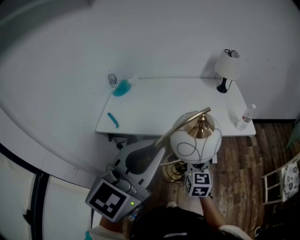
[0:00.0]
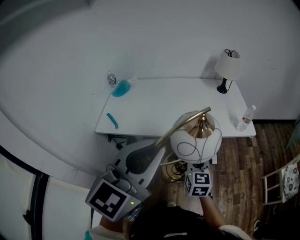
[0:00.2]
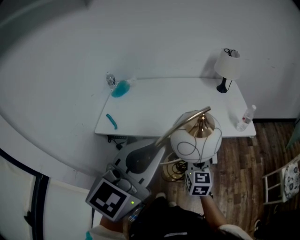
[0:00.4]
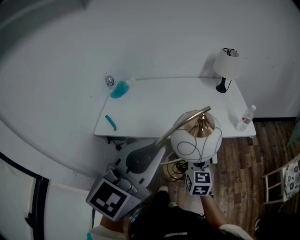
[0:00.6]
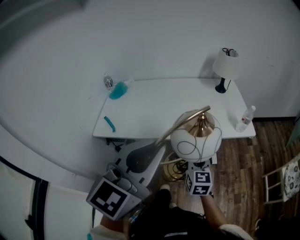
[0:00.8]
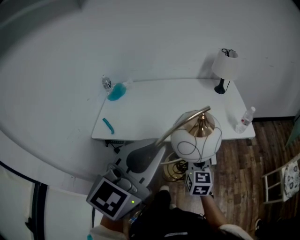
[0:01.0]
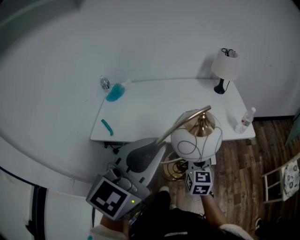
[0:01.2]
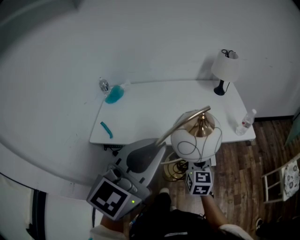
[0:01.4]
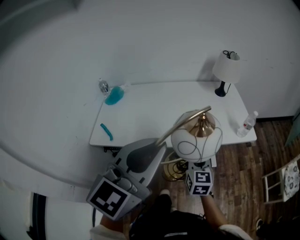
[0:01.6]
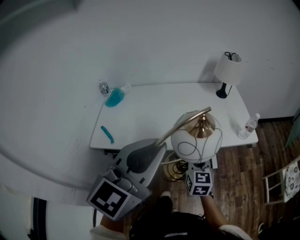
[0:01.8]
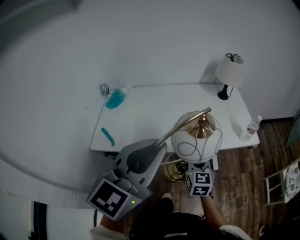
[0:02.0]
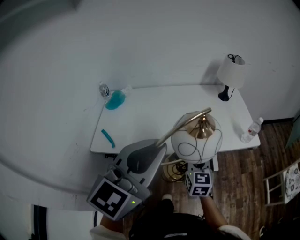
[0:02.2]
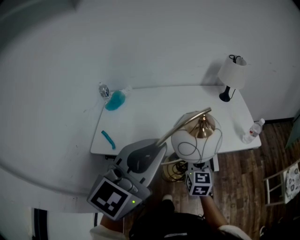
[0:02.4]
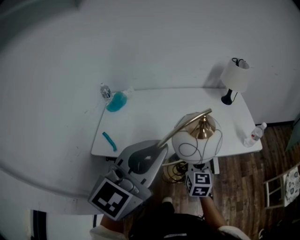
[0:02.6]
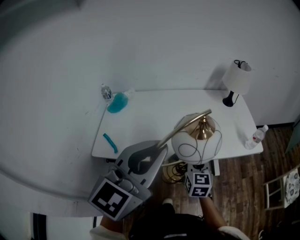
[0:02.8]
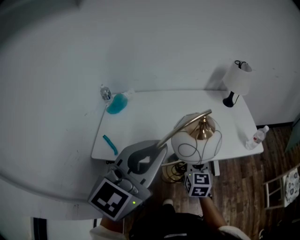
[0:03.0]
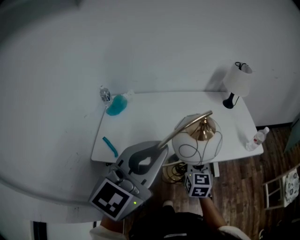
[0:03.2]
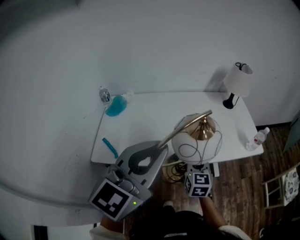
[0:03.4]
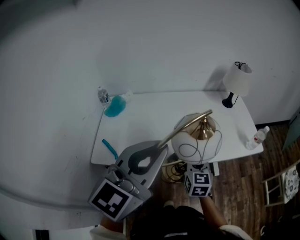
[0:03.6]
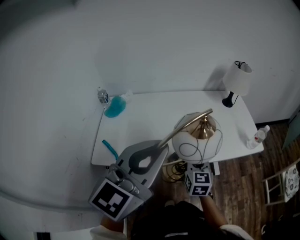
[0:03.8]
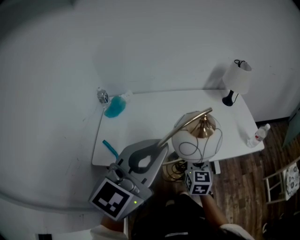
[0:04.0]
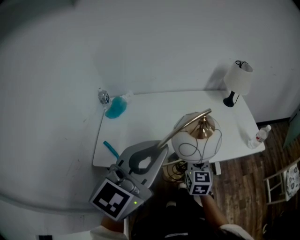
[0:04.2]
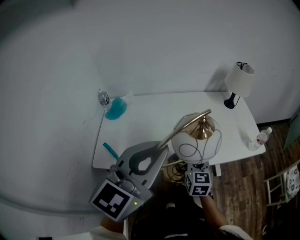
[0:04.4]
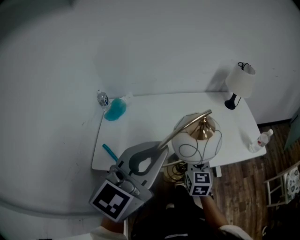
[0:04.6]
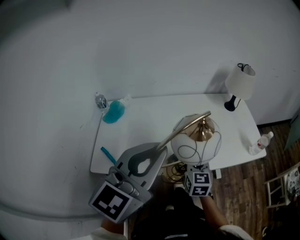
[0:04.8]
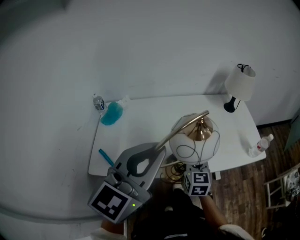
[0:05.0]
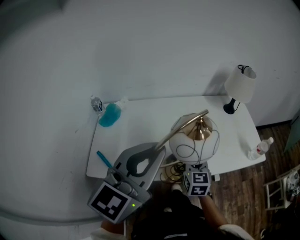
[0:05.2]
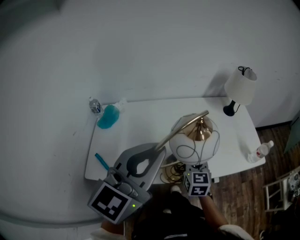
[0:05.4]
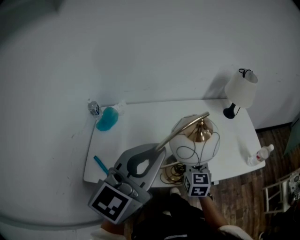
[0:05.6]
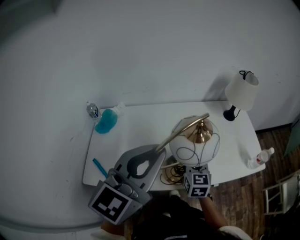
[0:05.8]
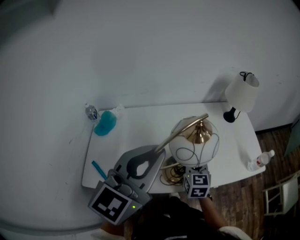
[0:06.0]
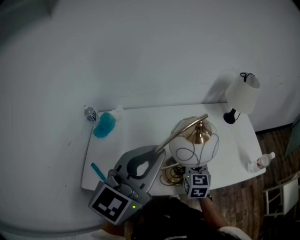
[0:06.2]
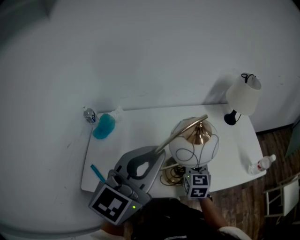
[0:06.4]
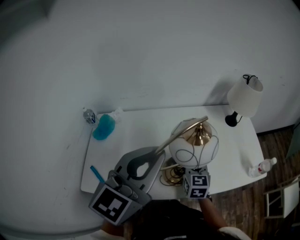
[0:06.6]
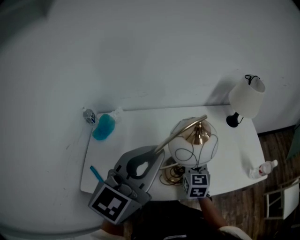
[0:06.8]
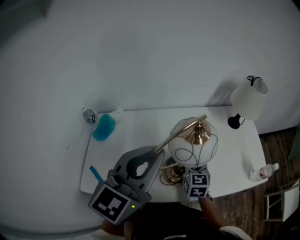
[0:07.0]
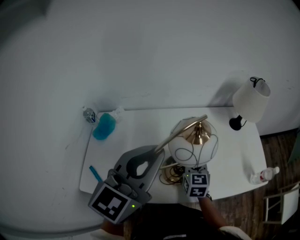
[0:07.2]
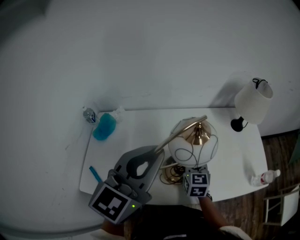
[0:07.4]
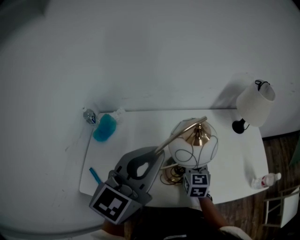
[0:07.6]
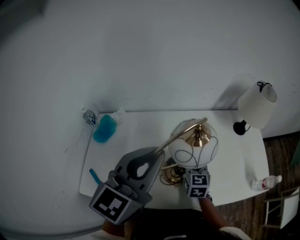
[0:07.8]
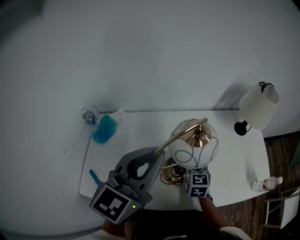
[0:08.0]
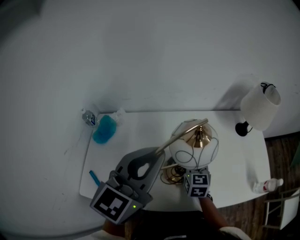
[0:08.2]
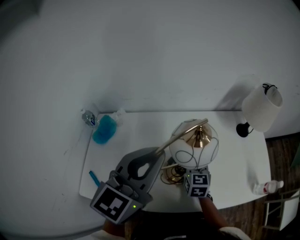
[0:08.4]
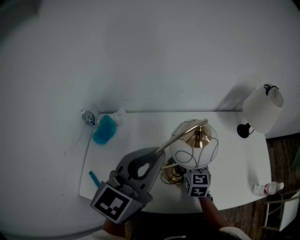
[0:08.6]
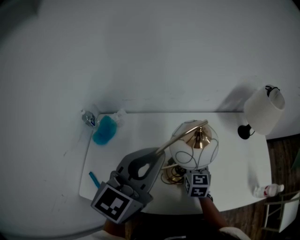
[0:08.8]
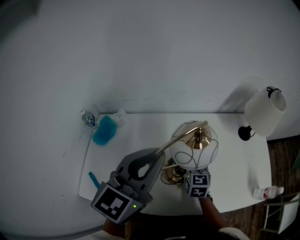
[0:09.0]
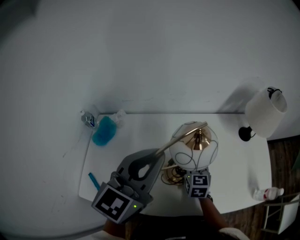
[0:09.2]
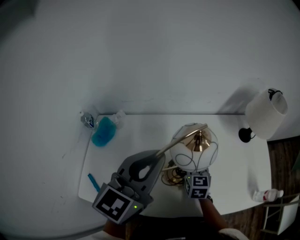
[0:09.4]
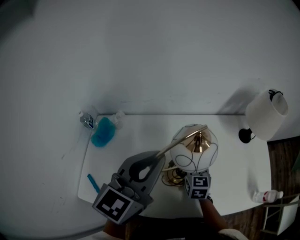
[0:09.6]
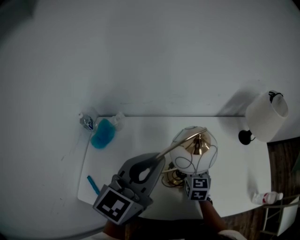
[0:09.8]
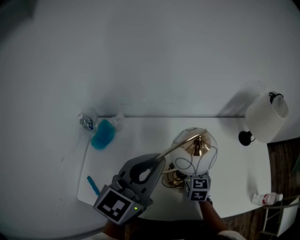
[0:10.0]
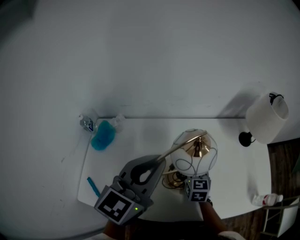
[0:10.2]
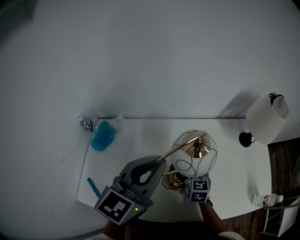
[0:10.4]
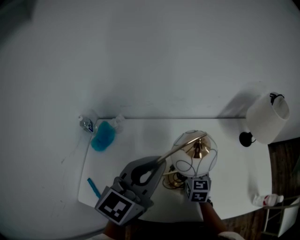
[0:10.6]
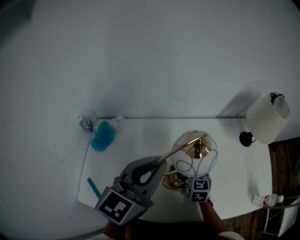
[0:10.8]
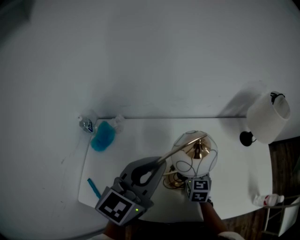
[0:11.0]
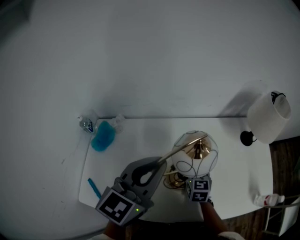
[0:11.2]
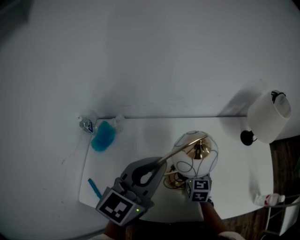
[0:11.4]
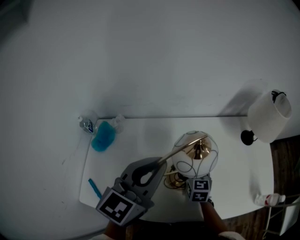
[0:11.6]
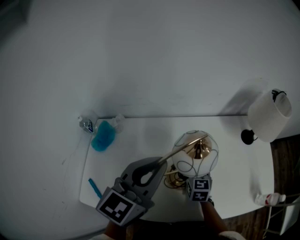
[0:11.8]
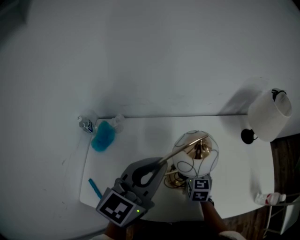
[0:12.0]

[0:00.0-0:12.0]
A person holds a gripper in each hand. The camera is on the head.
0:00.0 to 0:01.6: The grippers both shift forward by roughly 5 cm.
0:01.6 to 0:03.0: The right gripper shifts roughly 10 cm to the left and forward. Meanwhile the left gripper heads to the left, covering about 5 cm.
0:03.0 to 0:04.4: The right gripper goes some 5 cm to the left. The left gripper moves to the left and forward, roughly 10 cm.
0:04.4 to 0:06.0: The two grippers go some 15 cm forward.
0:06.0 to 0:07.6: Both grippers move forward, roughly 10 cm.
0:07.6 to 0:09.0: The left gripper heads forward, covering approximately 5 cm. The right gripper shifts by roughly 5 cm.
0:09.0 to 0:10.4: The grippers stay close to where they were, moving slightly.
0:10.4 to 0:12.0: Both grippers stay about where they are.

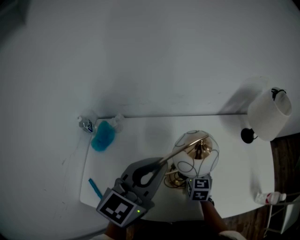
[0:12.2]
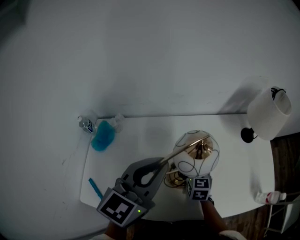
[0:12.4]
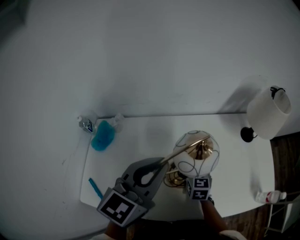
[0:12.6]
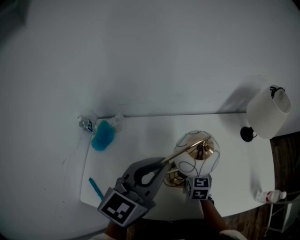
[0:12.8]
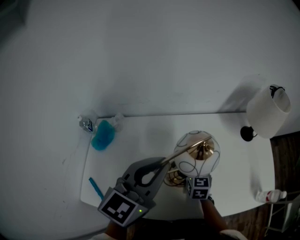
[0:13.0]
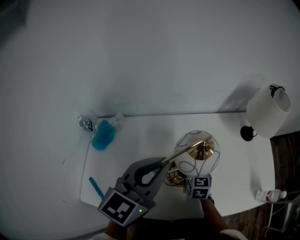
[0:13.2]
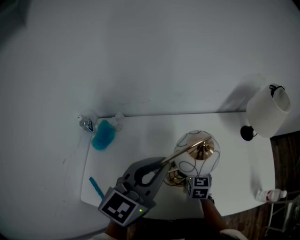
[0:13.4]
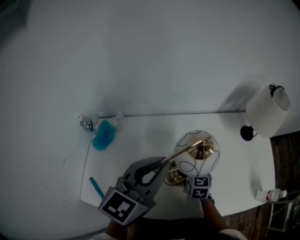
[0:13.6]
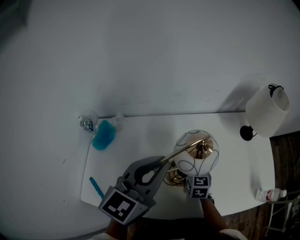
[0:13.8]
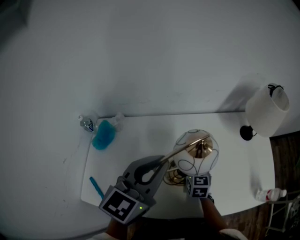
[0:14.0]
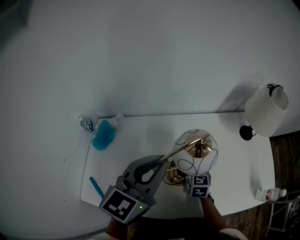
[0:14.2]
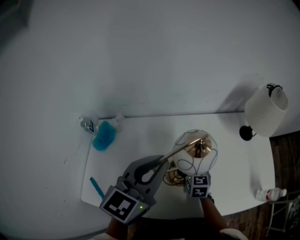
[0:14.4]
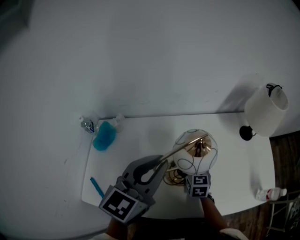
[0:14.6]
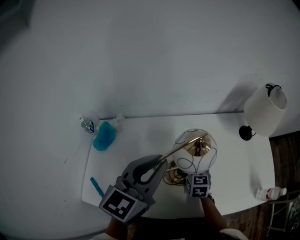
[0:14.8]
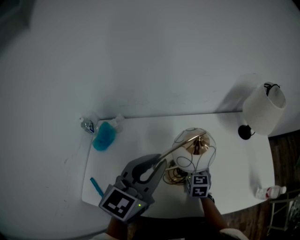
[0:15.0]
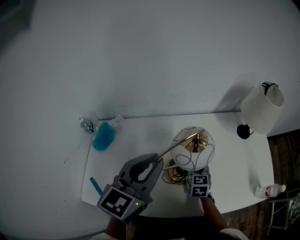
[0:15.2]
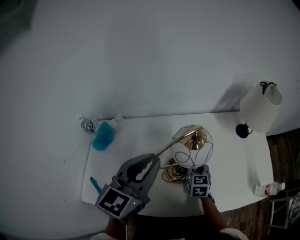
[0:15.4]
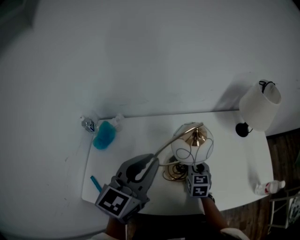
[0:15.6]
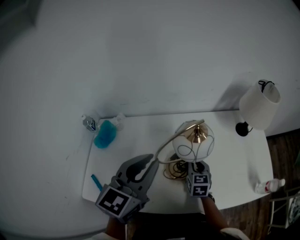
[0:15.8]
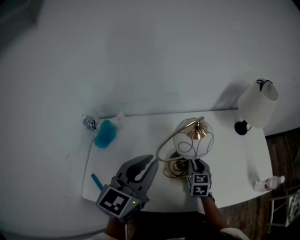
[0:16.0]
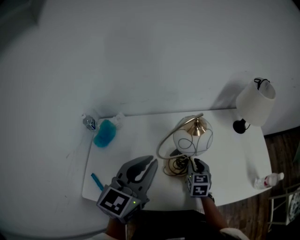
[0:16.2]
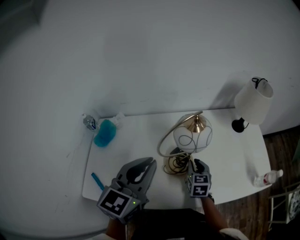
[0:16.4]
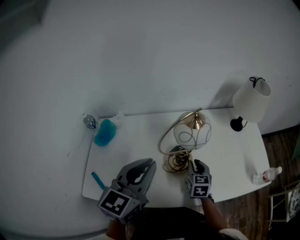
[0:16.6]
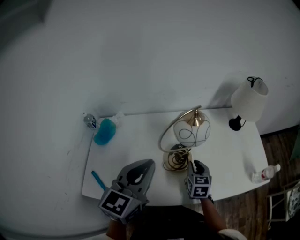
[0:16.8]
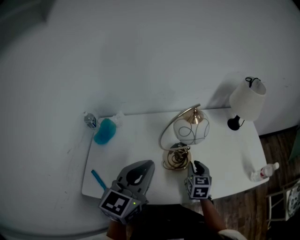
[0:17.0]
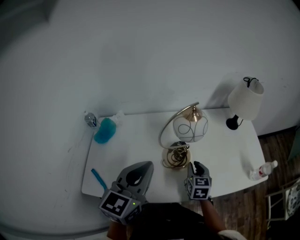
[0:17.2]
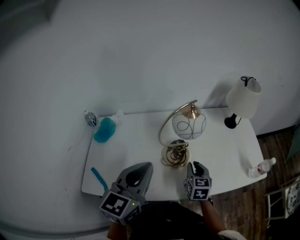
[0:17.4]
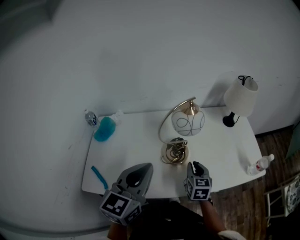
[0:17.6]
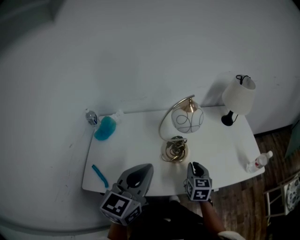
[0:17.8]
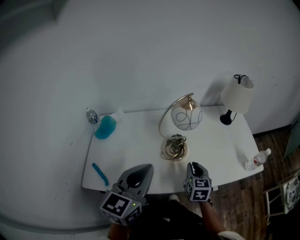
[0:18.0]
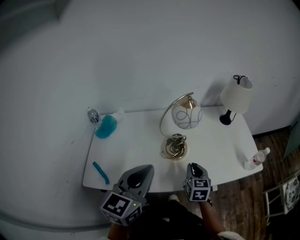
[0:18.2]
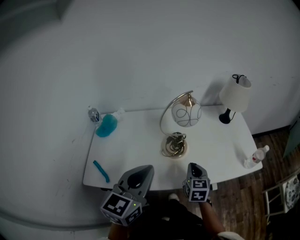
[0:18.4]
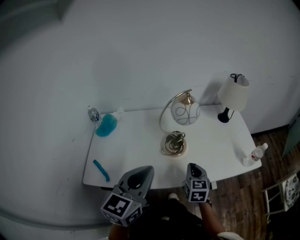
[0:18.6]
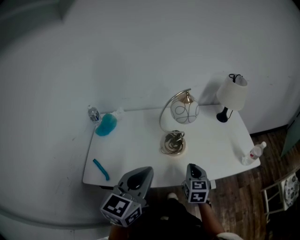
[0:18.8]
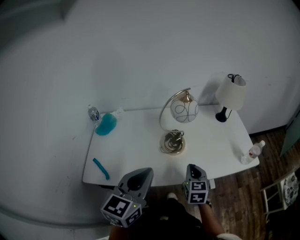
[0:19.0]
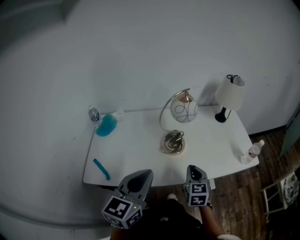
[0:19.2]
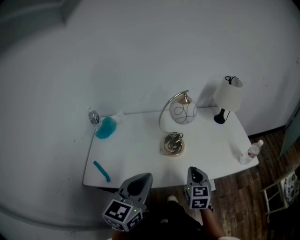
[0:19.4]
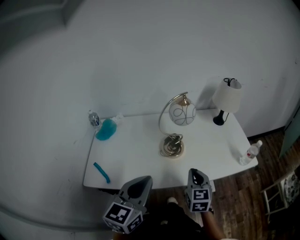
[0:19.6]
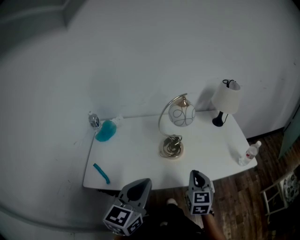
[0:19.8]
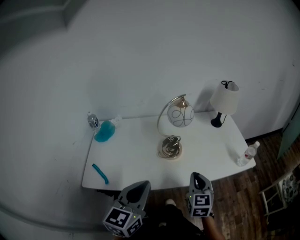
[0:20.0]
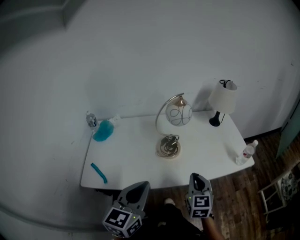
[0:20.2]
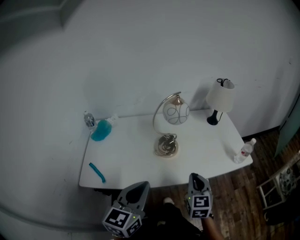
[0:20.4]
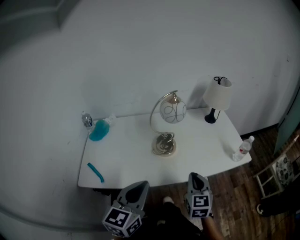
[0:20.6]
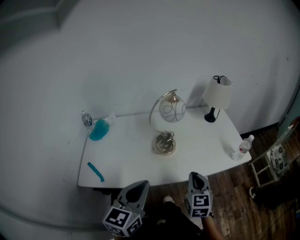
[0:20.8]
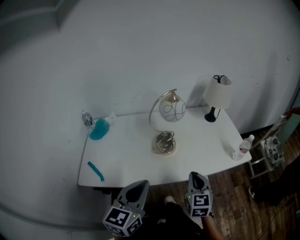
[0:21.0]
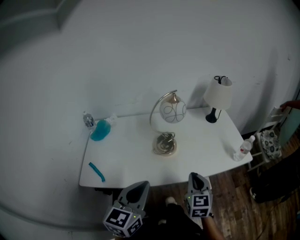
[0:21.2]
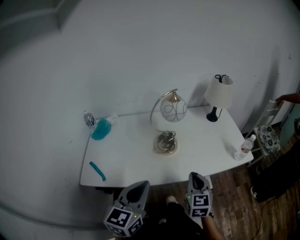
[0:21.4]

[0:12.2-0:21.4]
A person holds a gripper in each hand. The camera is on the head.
0:12.2 to 0:13.8: Both grippers stay about where they are.
0:13.8 to 0:15.2: There are only small adjustments of the grippers.
0:15.2 to 0:16.8: Both grippers travel together backward, about 10 cm.
0:16.8 to 0:18.4: Both grippers move backward, approximately 10 cm.
0:18.4 to 0:19.8: The right gripper is displaced backward and upward by approximately 10 cm. Meanwhile the left gripper travels backward by approximately 5 cm.
0:19.8 to 0:21.4: The grippers stay close to where they were, moving slightly.

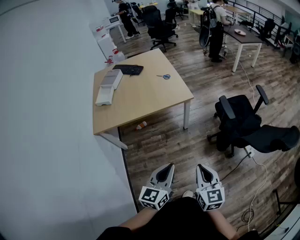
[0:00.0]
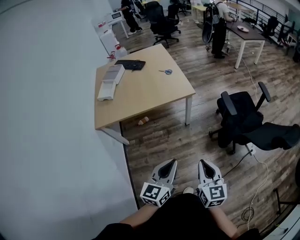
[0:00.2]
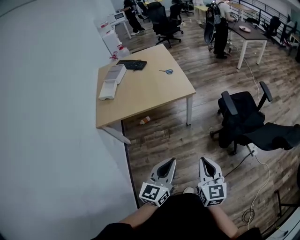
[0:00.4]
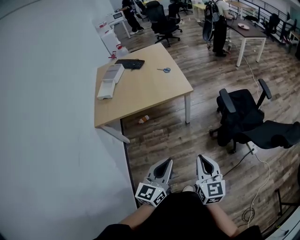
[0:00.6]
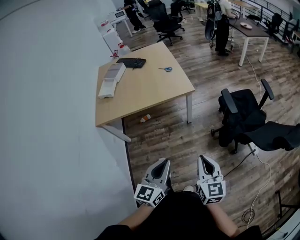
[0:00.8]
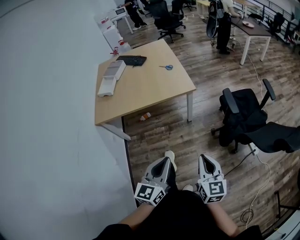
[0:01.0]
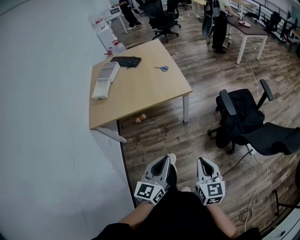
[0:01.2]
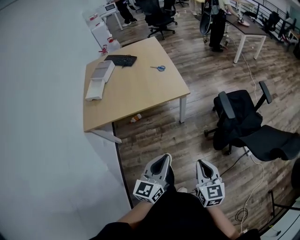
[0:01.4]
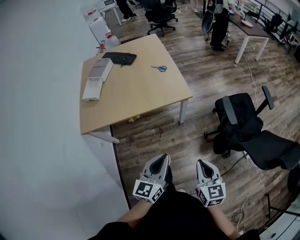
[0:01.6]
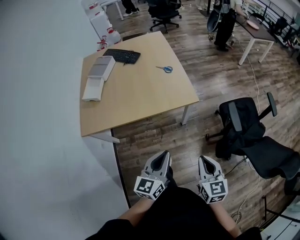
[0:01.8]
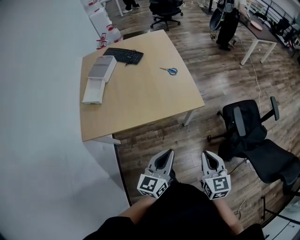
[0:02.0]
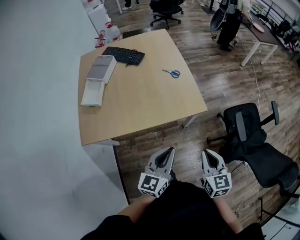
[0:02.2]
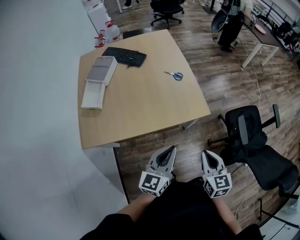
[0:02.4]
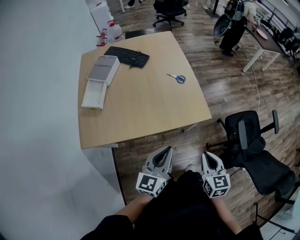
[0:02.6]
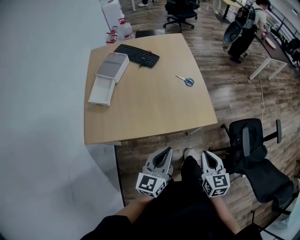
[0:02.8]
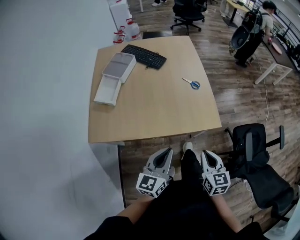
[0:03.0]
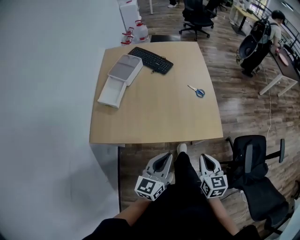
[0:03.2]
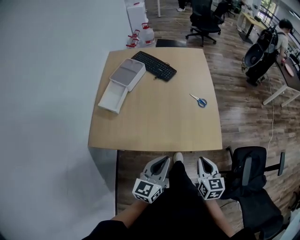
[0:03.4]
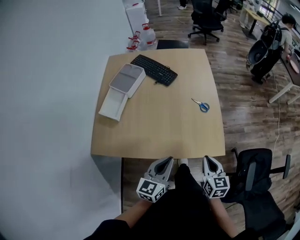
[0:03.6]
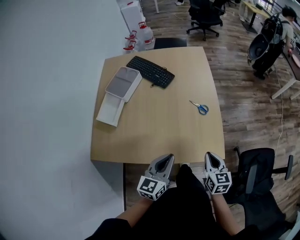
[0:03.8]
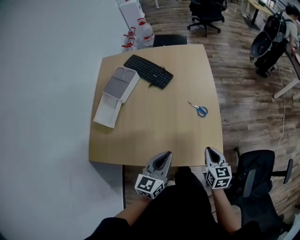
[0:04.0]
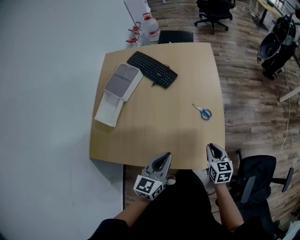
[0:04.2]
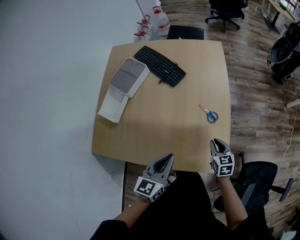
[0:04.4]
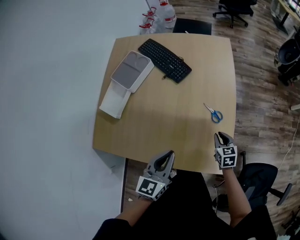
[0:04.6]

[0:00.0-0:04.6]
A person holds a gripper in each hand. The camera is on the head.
0:00.0 to 0:01.6: Both grippers move forward, about 15 cm.
0:01.6 to 0:03.0: Both grippers move forward and to the left, about 30 cm.
0:03.0 to 0:04.6: The left gripper shifts approximately 25 cm forward. The right gripper goes some 40 cm forward and downward, and rotates some 20 degrees.
